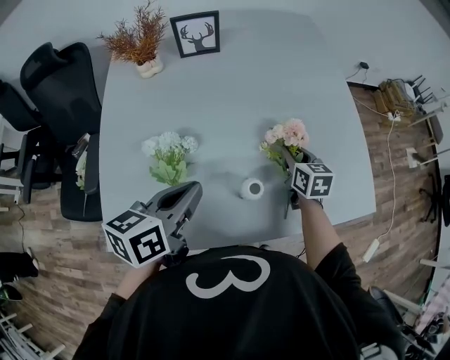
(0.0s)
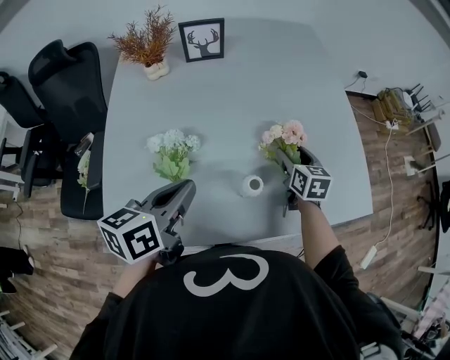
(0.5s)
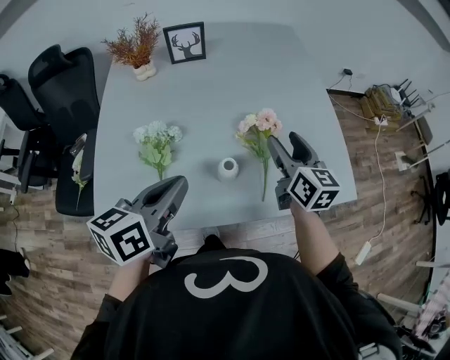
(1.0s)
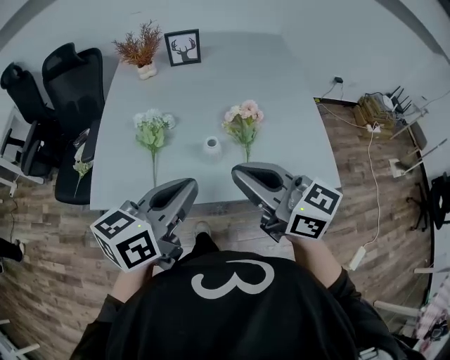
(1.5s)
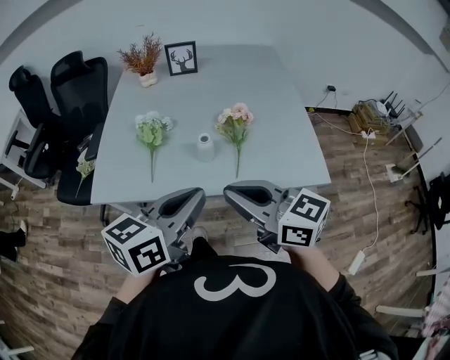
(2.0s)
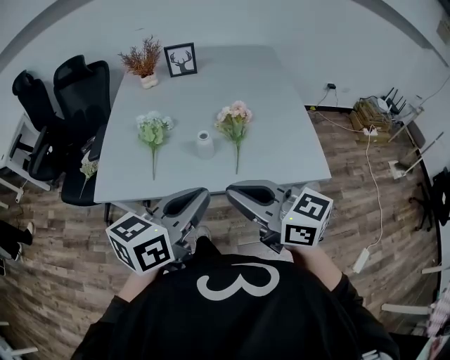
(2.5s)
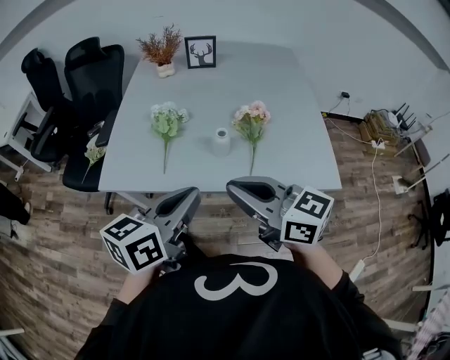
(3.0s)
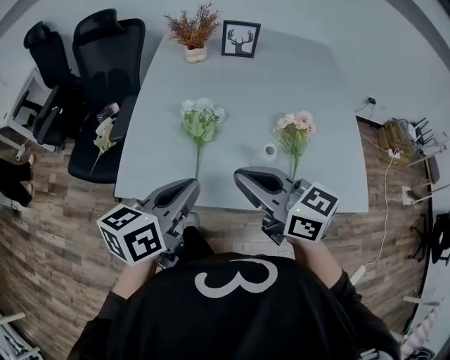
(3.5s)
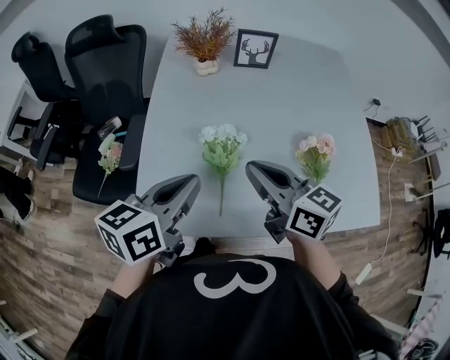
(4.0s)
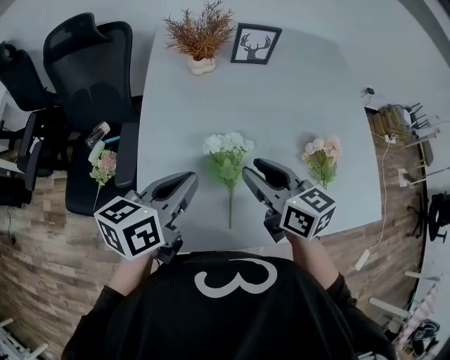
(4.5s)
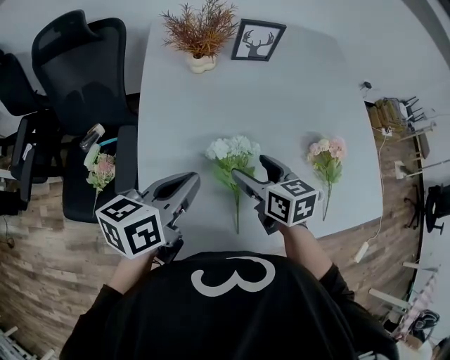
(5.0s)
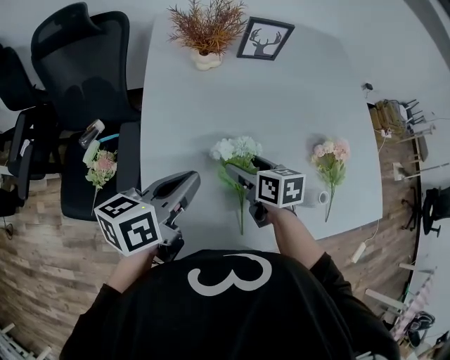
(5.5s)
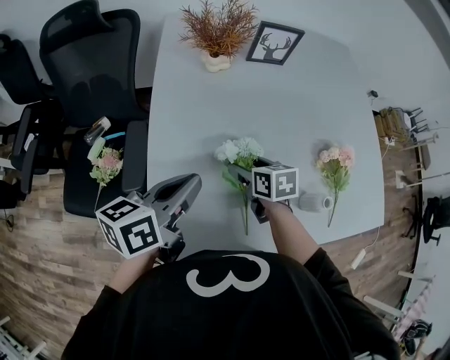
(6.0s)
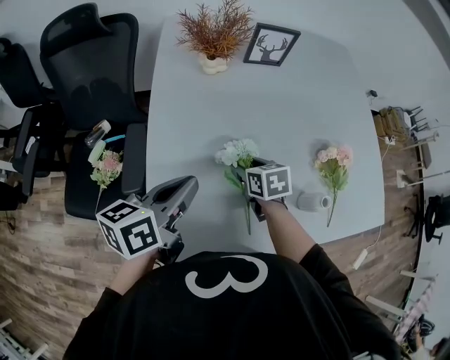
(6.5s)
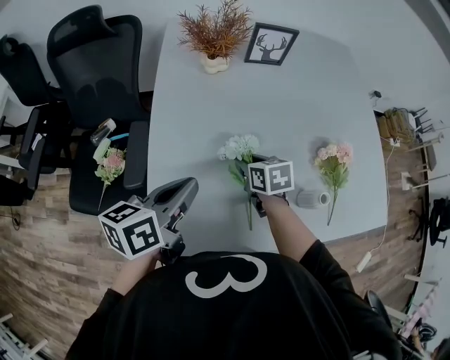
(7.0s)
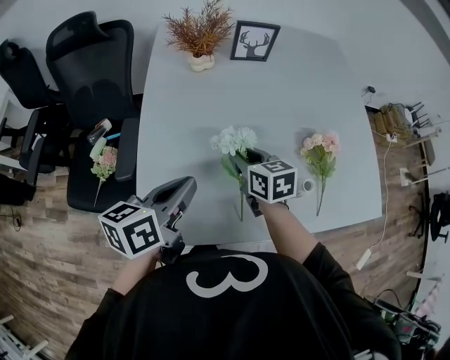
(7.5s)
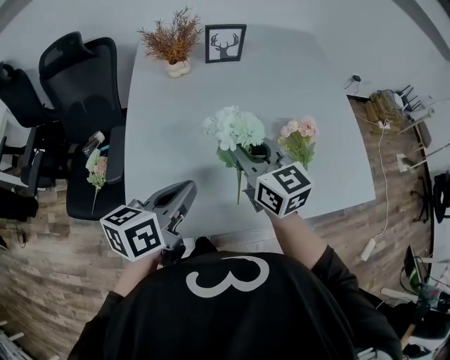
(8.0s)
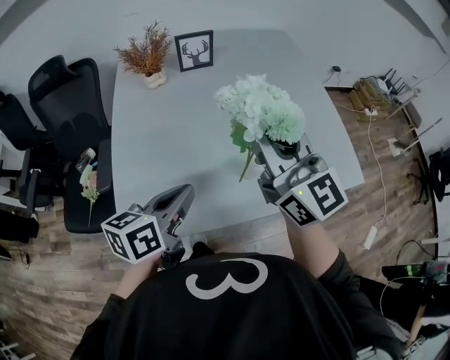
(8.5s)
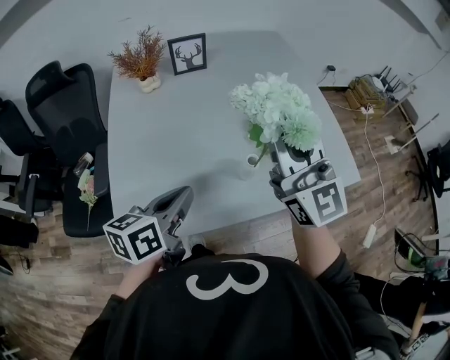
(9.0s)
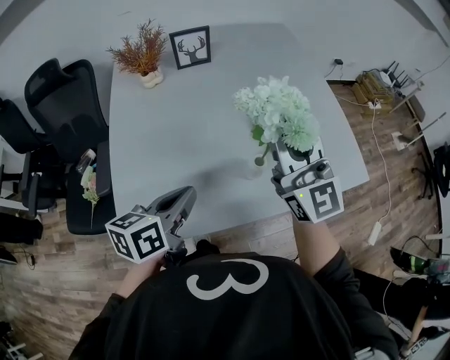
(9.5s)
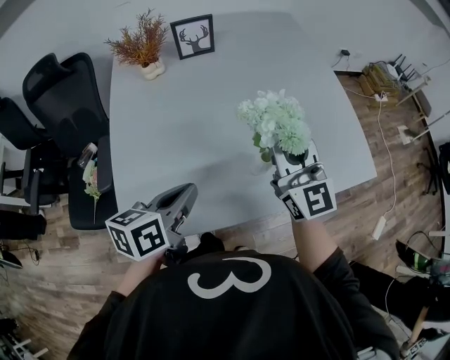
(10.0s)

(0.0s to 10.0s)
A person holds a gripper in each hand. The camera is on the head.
0.0s - 2.0s: The left gripper moves backward, to the right and upward, some 30 cm. Meanwhile the right gripper heads backward and upward, covering roughly 40 cm, angles its fingers upward, by some 30 degrees, and opens, then closes again.
2.0s - 4.0s: The two grippers go some 30 cm forward and to the left.
4.0s - 6.0s: The right gripper travels downward and forward by approximately 25 cm, points its fingers some 40 degrees further downward, and opens up. Meanwhile the left gripper heads forward, to the left and downward, covering about 15 cm.
6.0s - 8.0s: The left gripper travels to the right and backward by approximately 15 cm. The right gripper goes about 20 cm upward, points its fingers about 40 degrees further upward, and closes its fingers.
8.0s - 10.0s: The right gripper heads to the right, covering some 15 cm, reaches roughly 15 cm upward, then returns, and turns by approximately 30 degrees. The left gripper goes about 5 cm to the right.

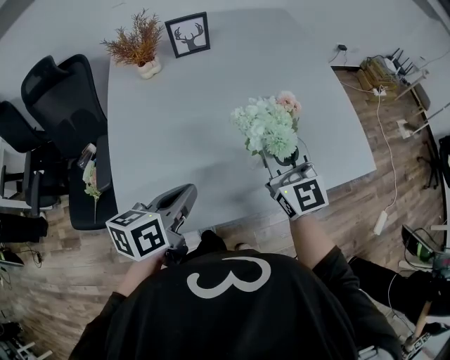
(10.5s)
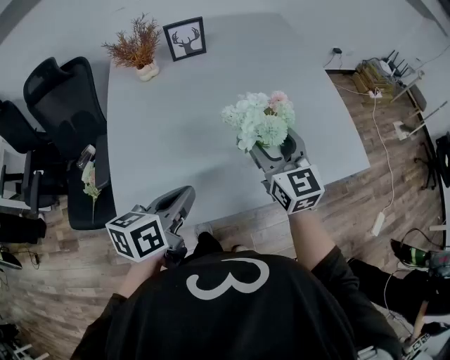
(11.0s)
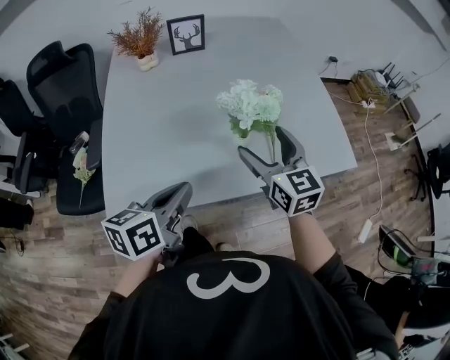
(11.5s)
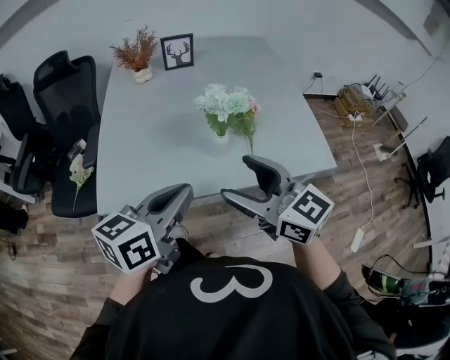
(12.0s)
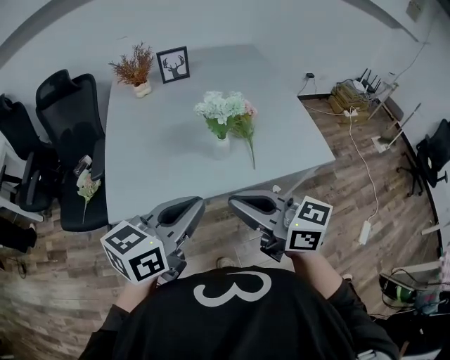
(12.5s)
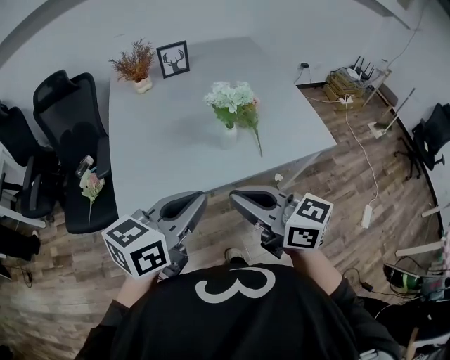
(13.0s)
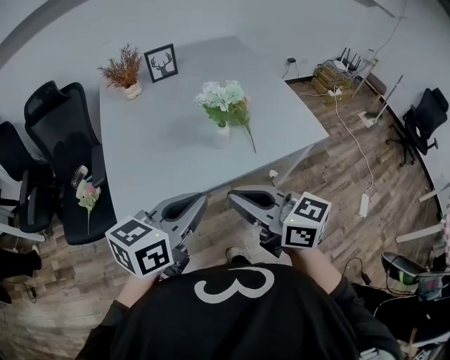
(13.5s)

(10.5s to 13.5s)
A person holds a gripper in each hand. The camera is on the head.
10.5s - 12.0s: The right gripper shifts approximately 20 cm backward, swivels some 30 degrees, and opens its fingers. The left gripper moves backward, to the right and upward, some 20 cm.
12.0s - 13.5s: The left gripper moves backward, some 5 cm. Meanwhile the right gripper moves backward and to the left, approximately 10 cm, and closes its fingers.

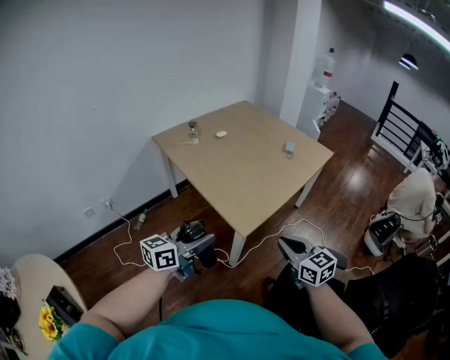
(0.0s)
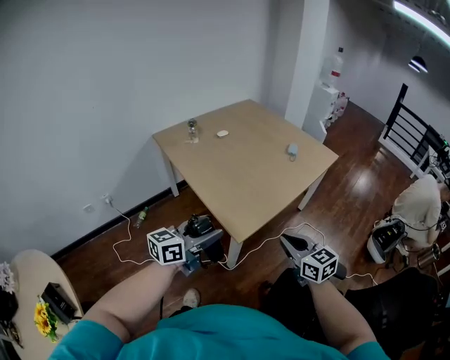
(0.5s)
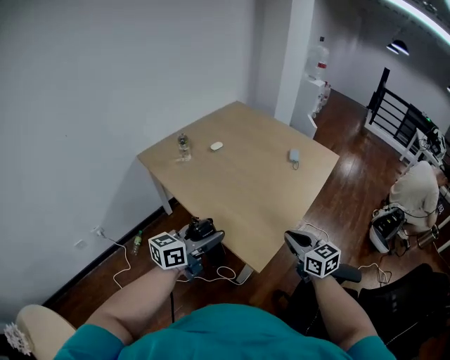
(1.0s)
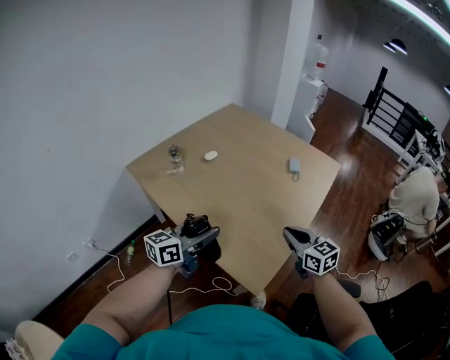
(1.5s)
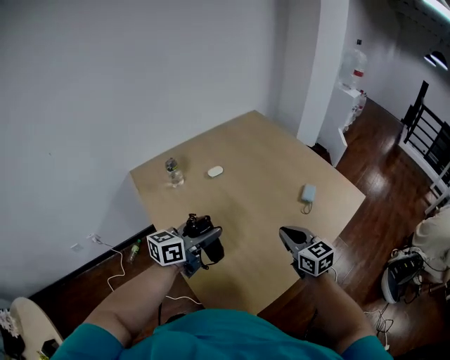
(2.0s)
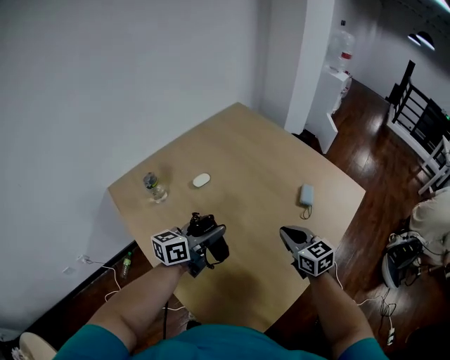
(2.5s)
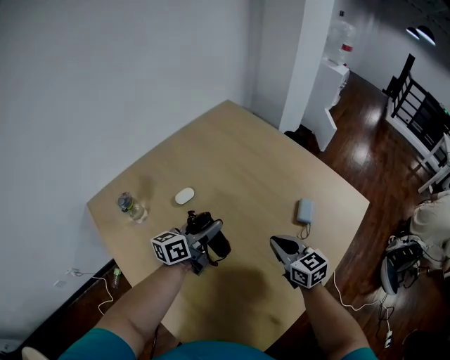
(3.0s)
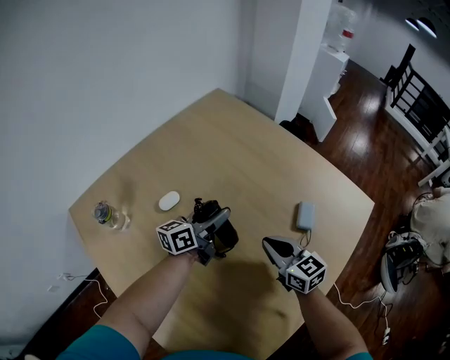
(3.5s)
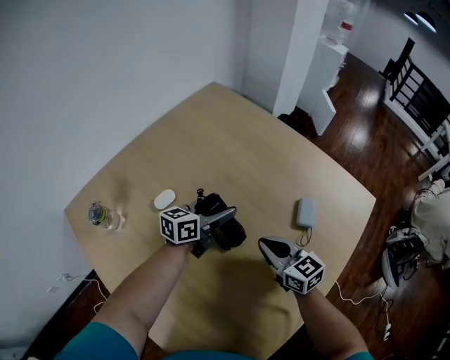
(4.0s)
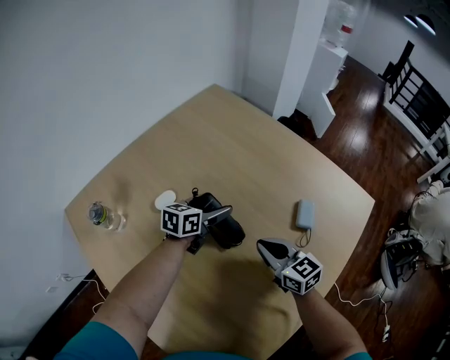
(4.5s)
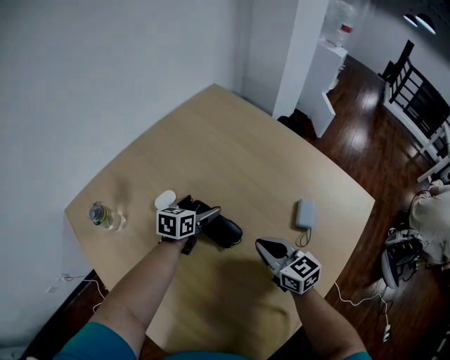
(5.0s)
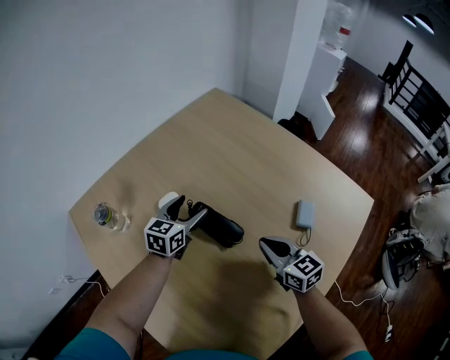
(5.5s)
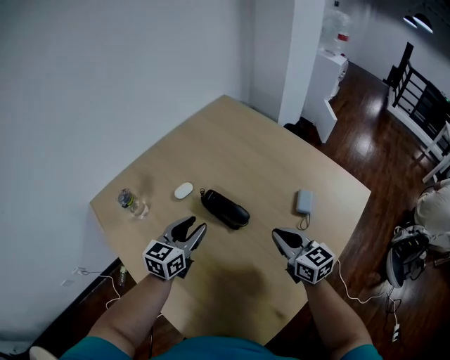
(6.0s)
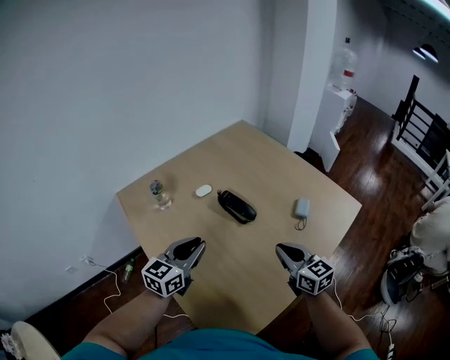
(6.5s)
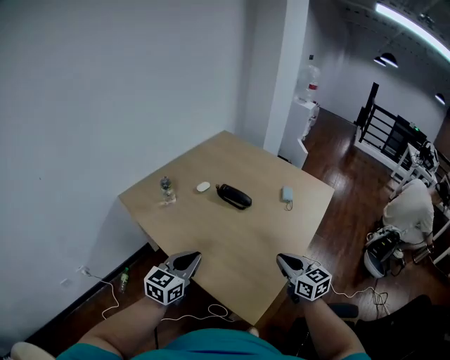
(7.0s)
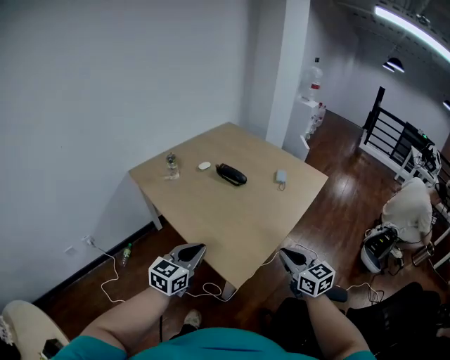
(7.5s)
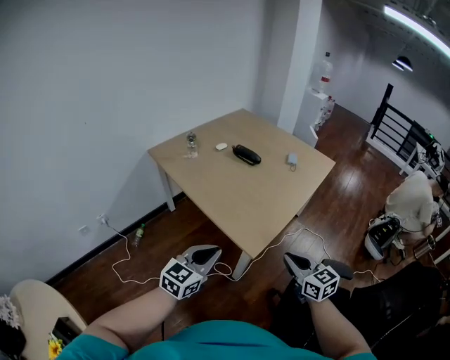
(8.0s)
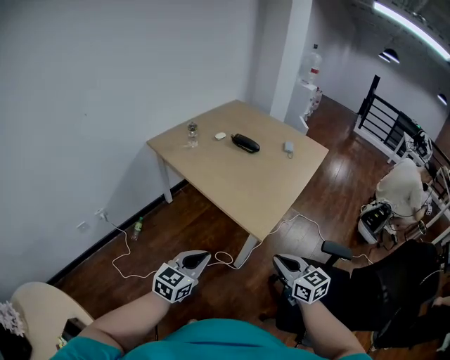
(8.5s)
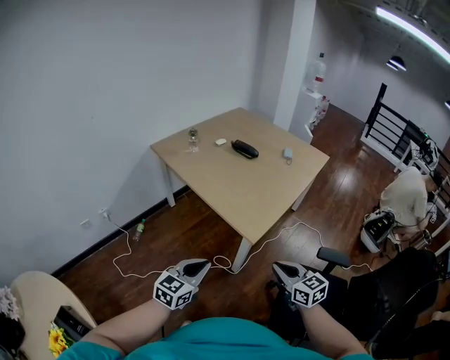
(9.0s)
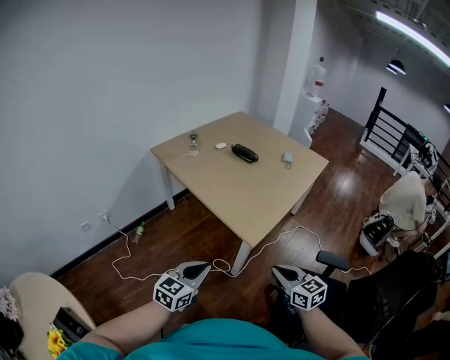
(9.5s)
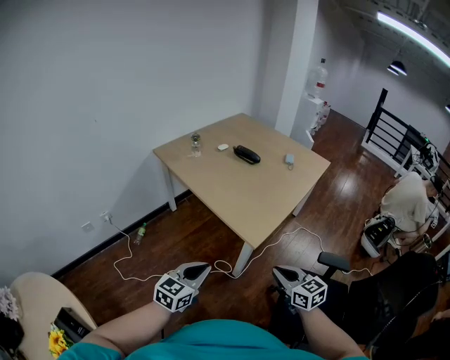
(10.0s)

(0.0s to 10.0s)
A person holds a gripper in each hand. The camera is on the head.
0.0s - 2.0s: The two grippers travel together, forward, roughly 40 cm.
2.0s - 4.0s: The left gripper is displaced forward and downward by roughly 35 cm; the right gripper heads forward and downward, covering roughly 20 cm.
4.0s - 6.0s: The left gripper travels backward, to the left and upward by roughly 20 cm, turns by about 30 degrees, and closes its fingers, while the right gripper travels upward by roughly 5 cm.
6.0s - 8.0s: The pair of grippers is taken backward, about 60 cm.
8.0s - 10.0s: The grippers both shift backward by approximately 10 cm.

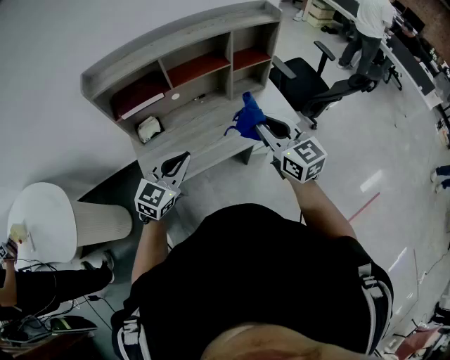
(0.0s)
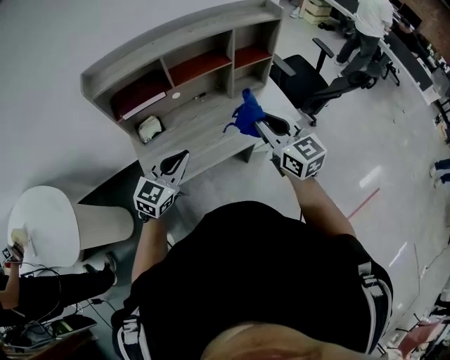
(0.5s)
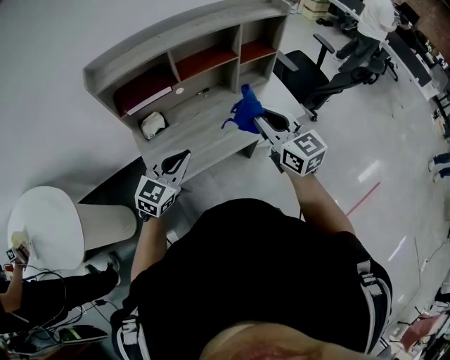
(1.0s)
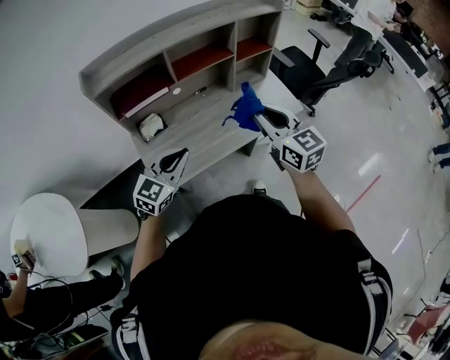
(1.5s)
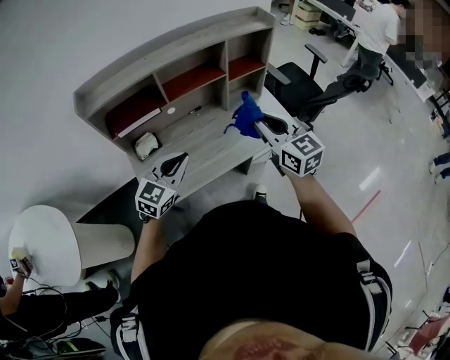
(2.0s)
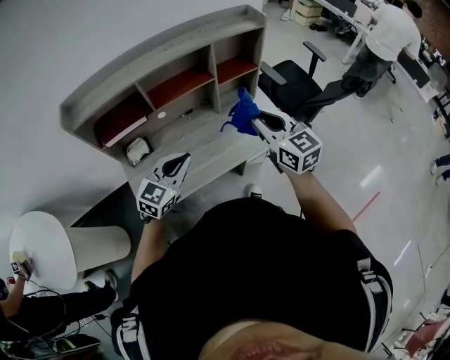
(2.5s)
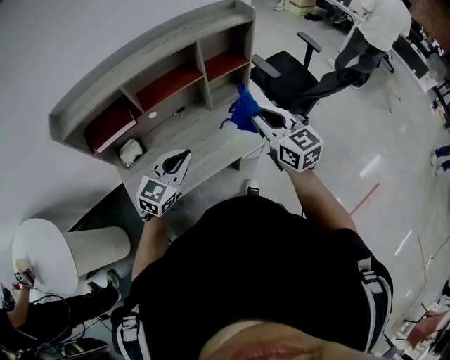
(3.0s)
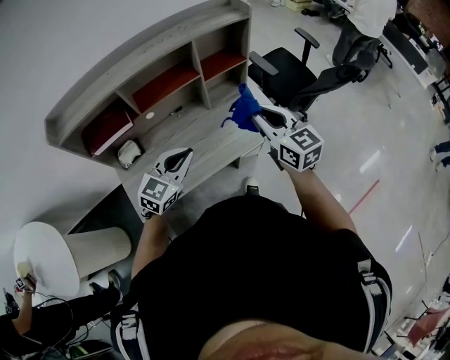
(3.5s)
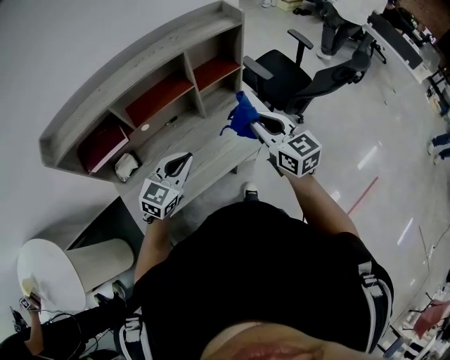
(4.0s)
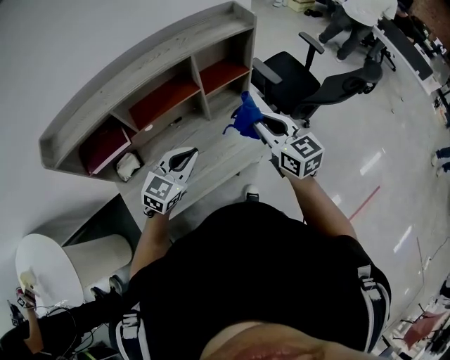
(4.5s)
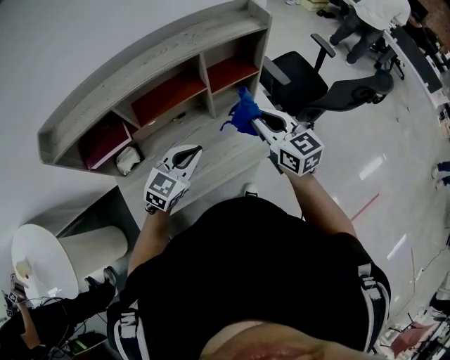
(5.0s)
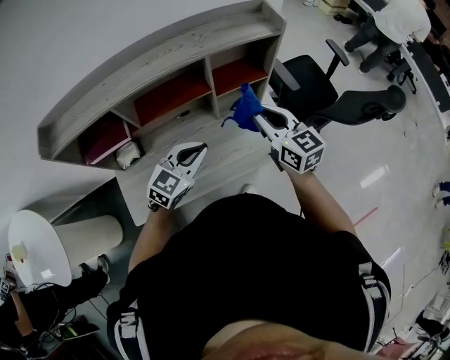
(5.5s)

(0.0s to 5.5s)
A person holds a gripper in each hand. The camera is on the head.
0.0s - 2.0s: The left gripper shifts roughly 5 cm forward; the right gripper shifts by about 5 cm.
2.0s - 3.5s: The grippers both shift to the right and forward by about 15 cm.
3.5s - 5.5s: Both grippers travel together forward, approximately 15 cm.
